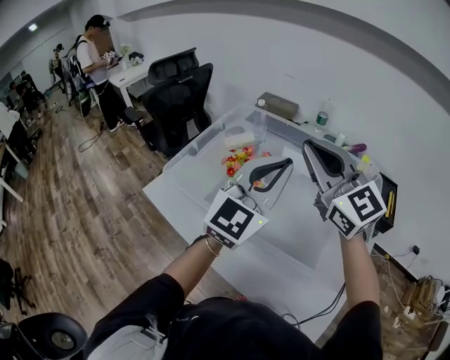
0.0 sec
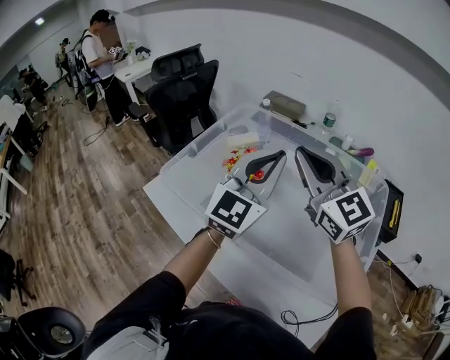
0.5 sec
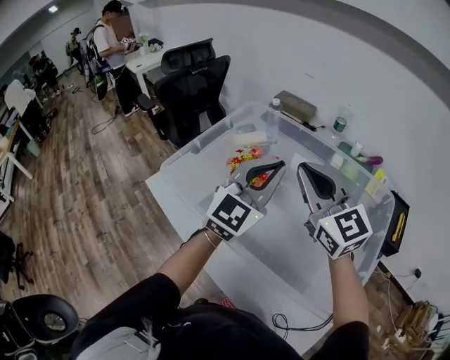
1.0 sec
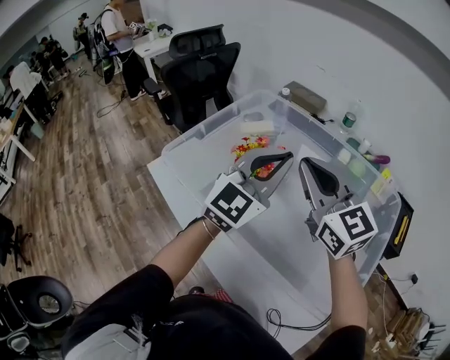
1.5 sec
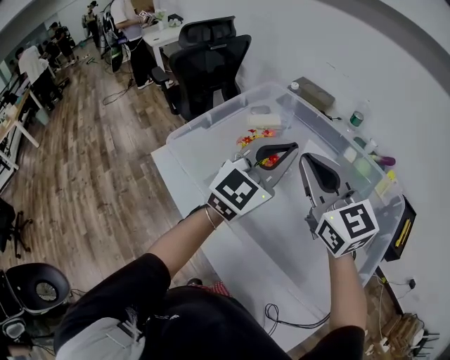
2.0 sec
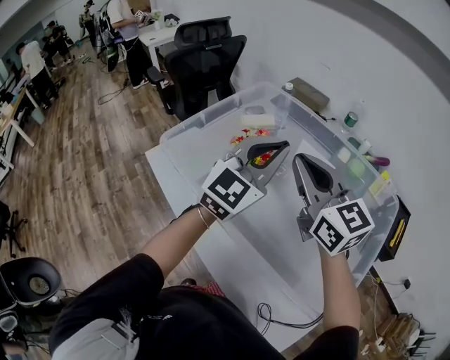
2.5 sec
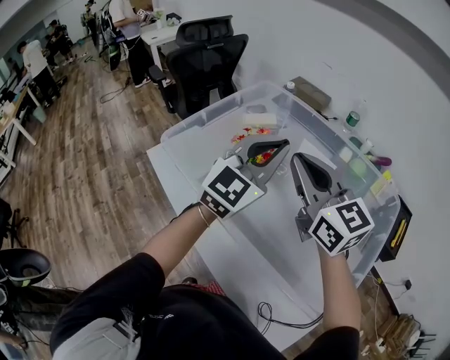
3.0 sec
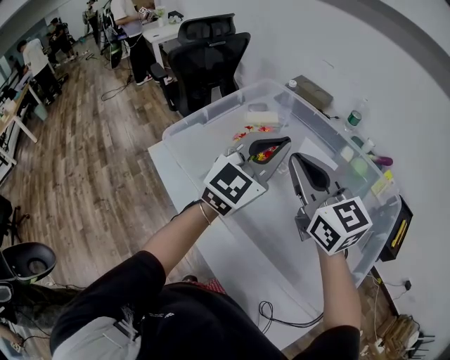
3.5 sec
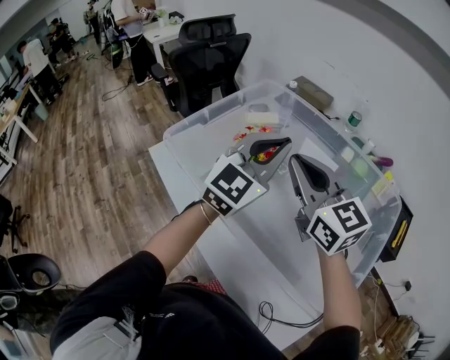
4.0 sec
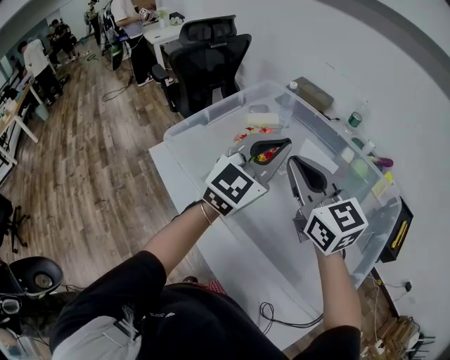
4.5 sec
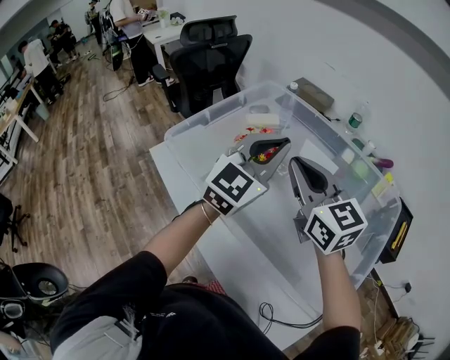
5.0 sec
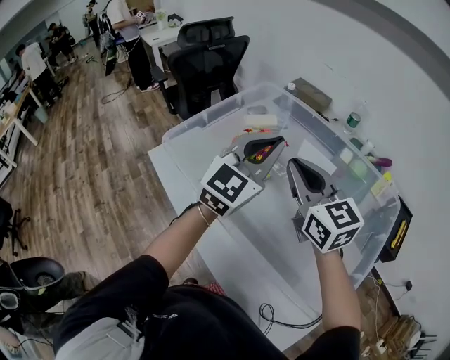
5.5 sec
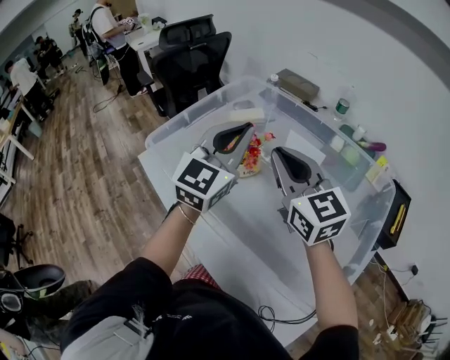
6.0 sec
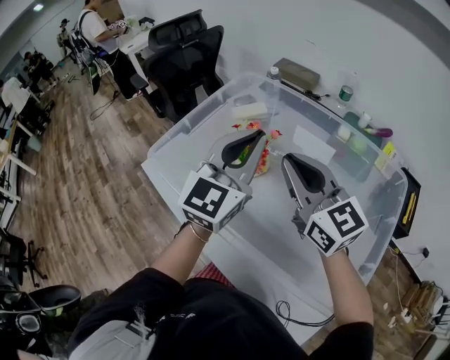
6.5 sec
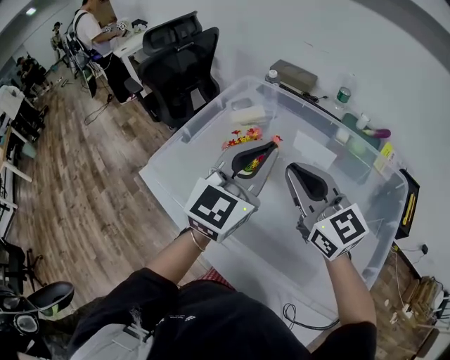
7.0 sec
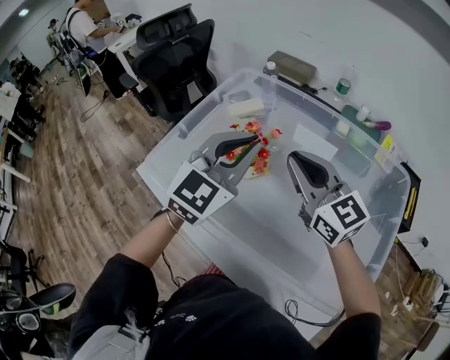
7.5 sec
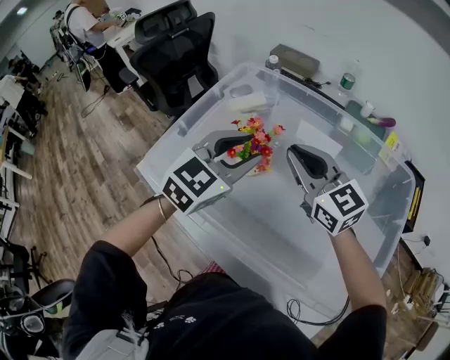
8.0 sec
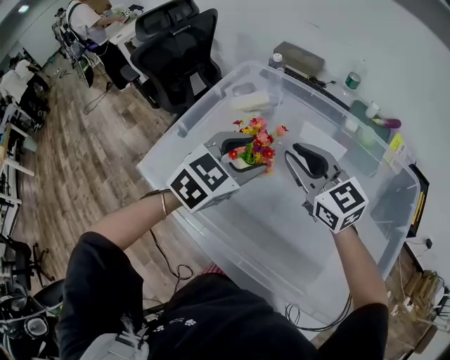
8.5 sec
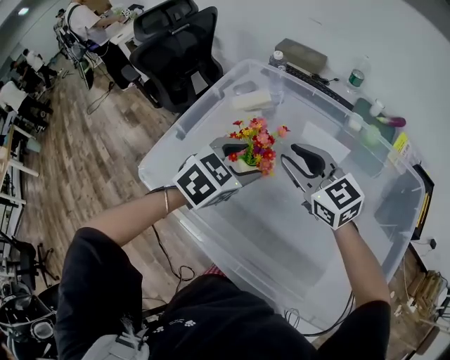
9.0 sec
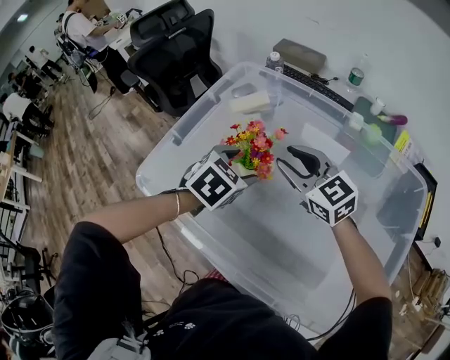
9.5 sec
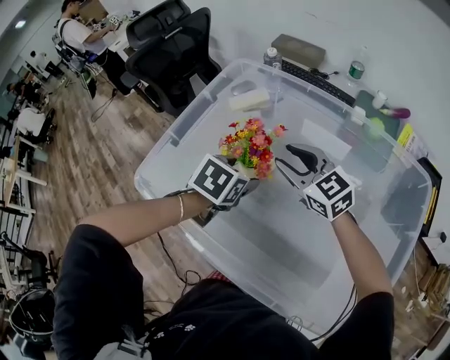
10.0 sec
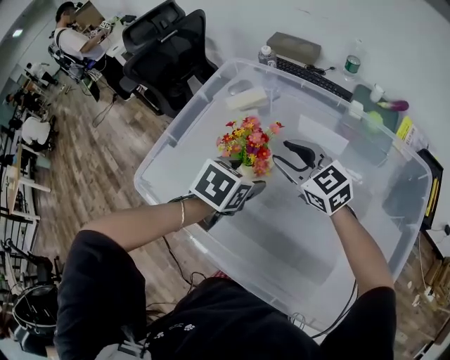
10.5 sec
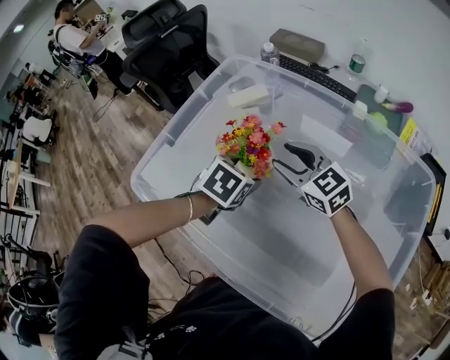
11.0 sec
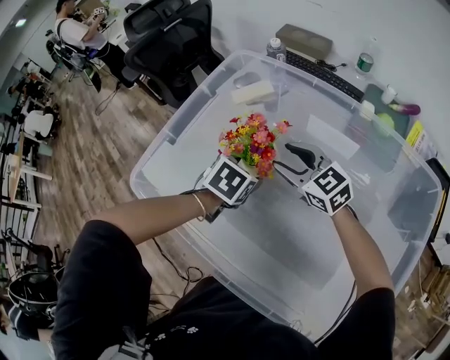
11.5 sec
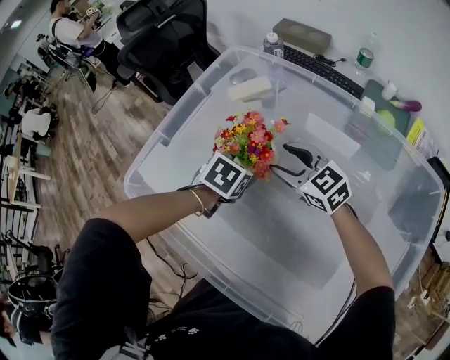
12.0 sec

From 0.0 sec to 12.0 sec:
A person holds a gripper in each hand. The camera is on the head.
From 0.0 sec to 2.0 sec: The right gripper is displaced downward by approximately 10 cm. The left gripper goes some 10 cm forward and downward.
From 2.0 sec to 6.0 sec: The grippers make only small movements.
From 6.0 sec to 8.0 sec: The left gripper heads downward, covering approximately 5 cm, and turns by approximately 30 degrees; the right gripper travels forward and downward by approximately 10 cm.
From 8.0 sec to 10.0 sec: The left gripper heads downward, covering some 15 cm, points its fingers some 40 degrees further downward, and opens up; the right gripper moves downward and forward, approximately 10 cm, and opens its fingers.
From 10.0 sec to 12.0 sec: The grippers both shift downward by approximately 5 cm.

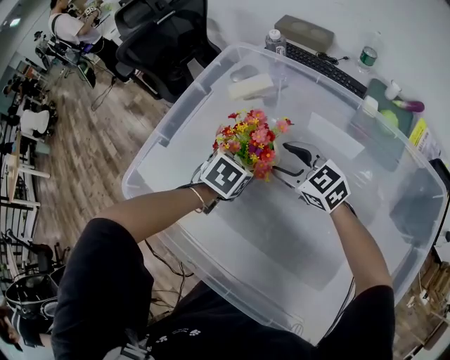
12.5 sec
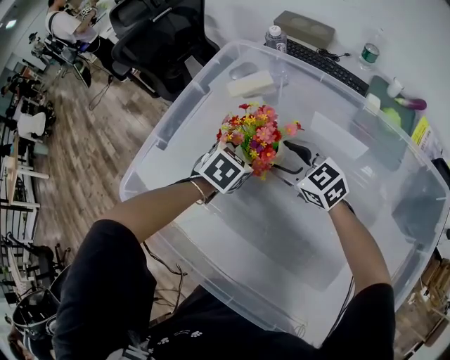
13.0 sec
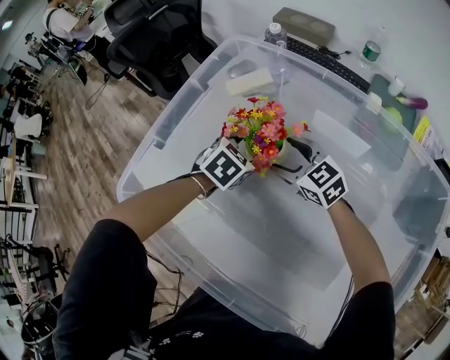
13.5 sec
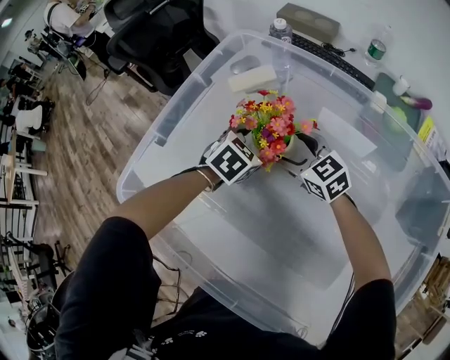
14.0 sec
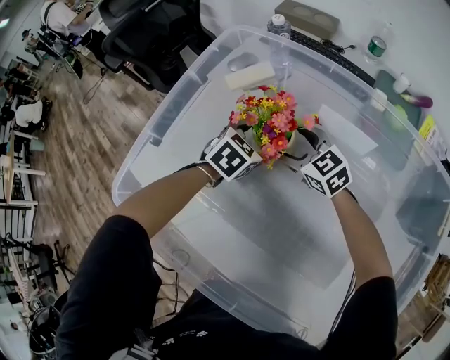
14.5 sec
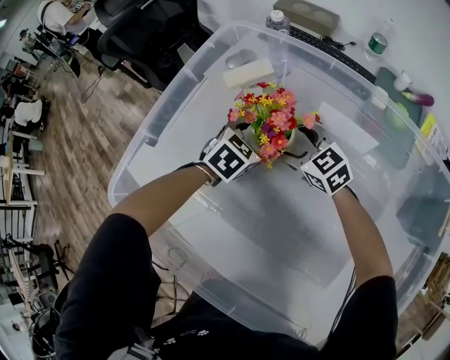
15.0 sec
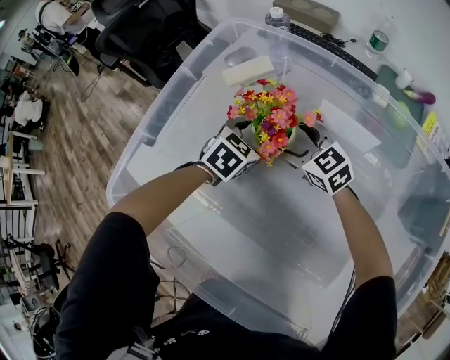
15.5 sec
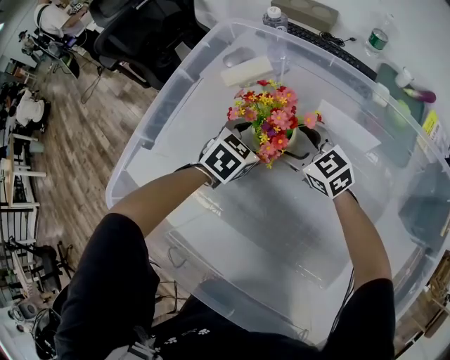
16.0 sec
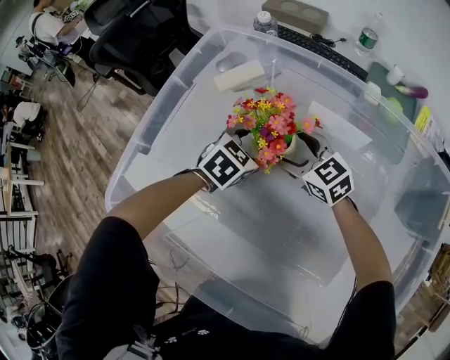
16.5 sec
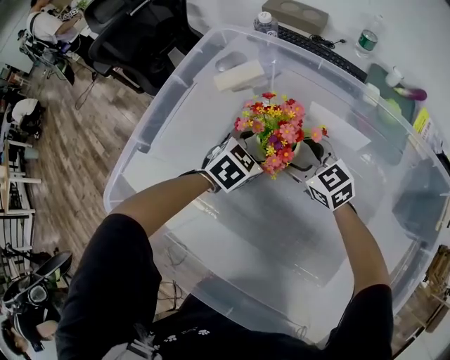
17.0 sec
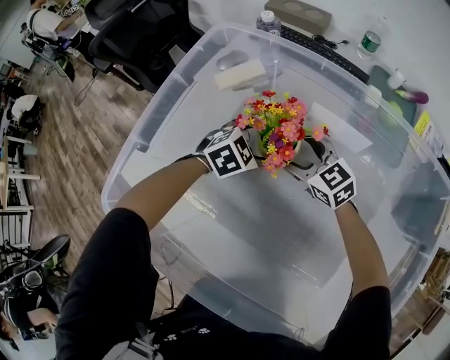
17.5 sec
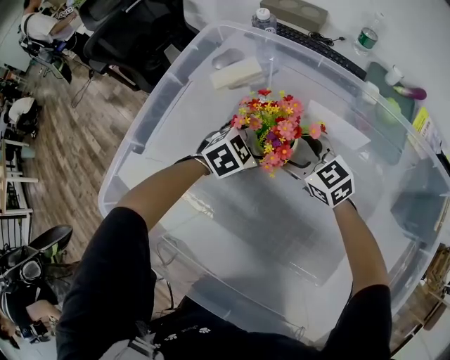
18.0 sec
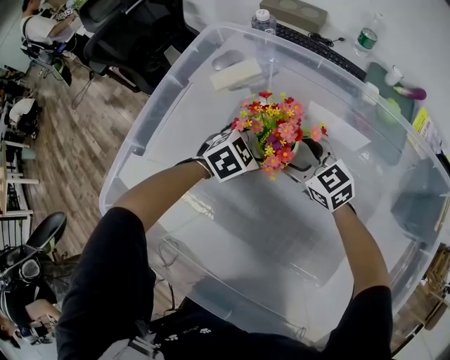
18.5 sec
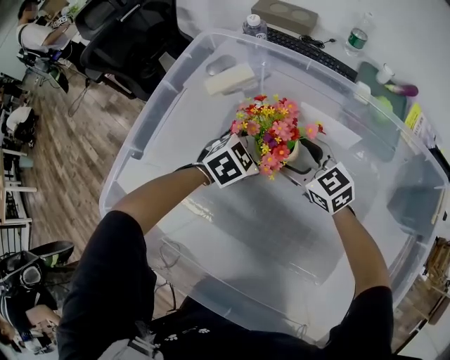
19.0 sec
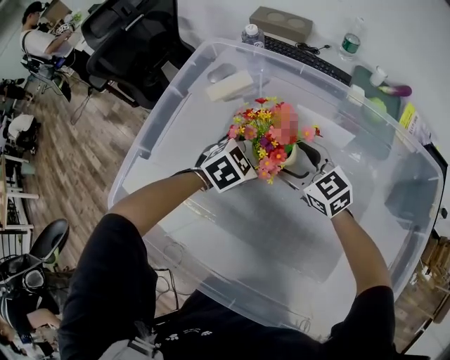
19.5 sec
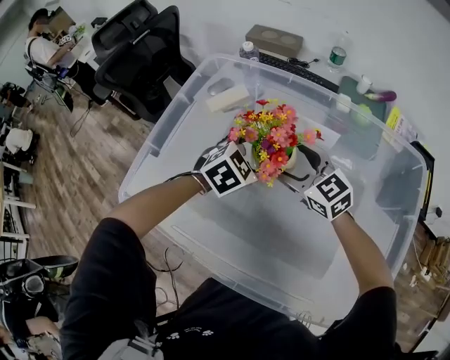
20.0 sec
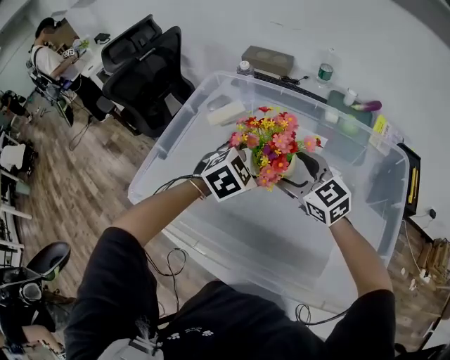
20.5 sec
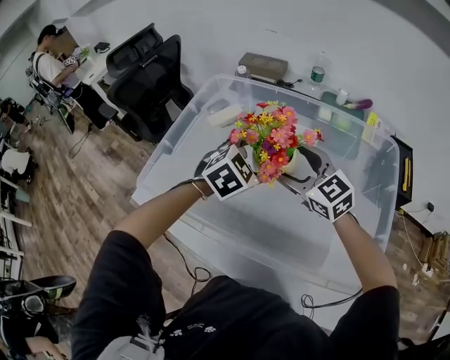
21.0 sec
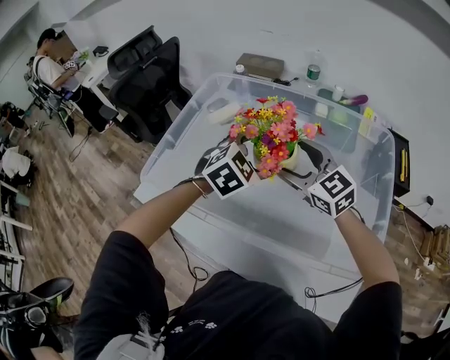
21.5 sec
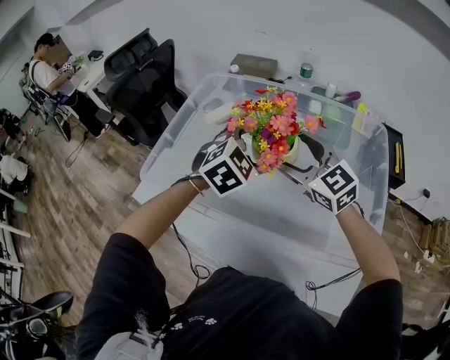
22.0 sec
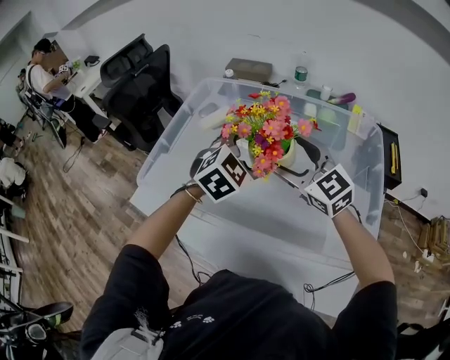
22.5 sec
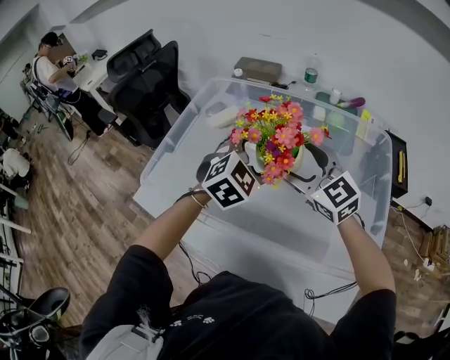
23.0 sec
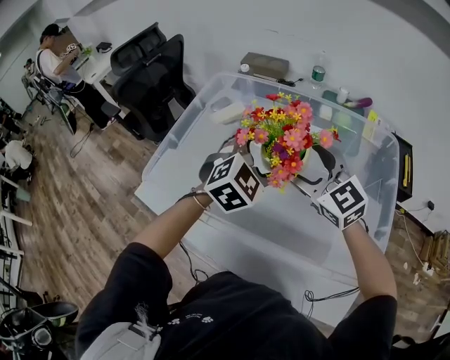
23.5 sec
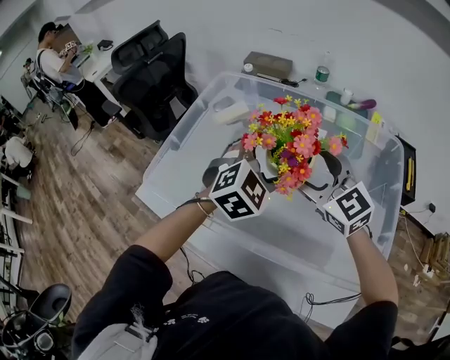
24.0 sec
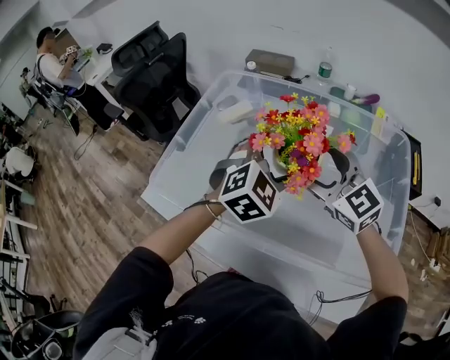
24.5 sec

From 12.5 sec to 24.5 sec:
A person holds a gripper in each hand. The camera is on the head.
From 12.5 sec to 14.5 sec: The grippers both shift forward by some 5 cm.
From 14.5 sec to 16.5 sec: The grippers stay close to where they were, moving slightly.
From 16.5 sec to 18.5 sec: The grippers make only small movements.
From 18.5 sec to 20.5 sec: Both grippers travel together upward and backward, some 15 cm.
From 20.5 sec to 22.5 sec: Both grippers travel together upward and backward, approximately 10 cm.
From 22.5 sec to 24.5 sec: There are only small adjustments of the grippers.

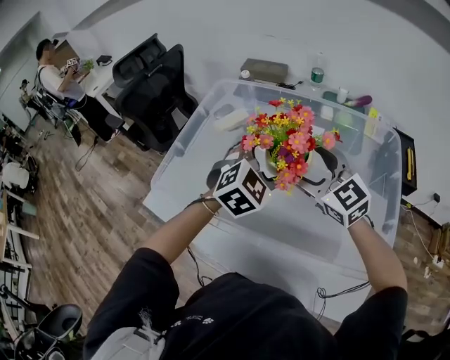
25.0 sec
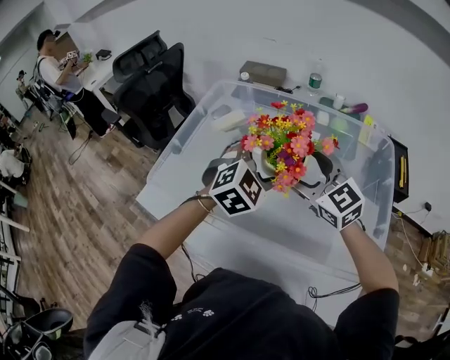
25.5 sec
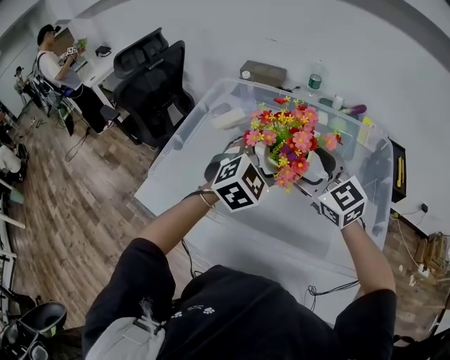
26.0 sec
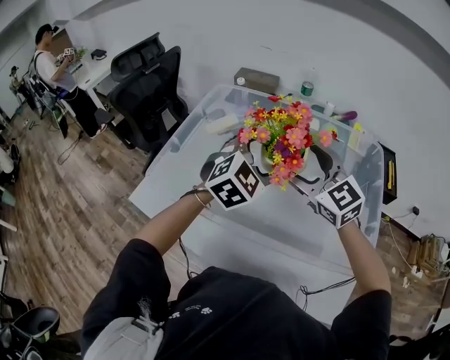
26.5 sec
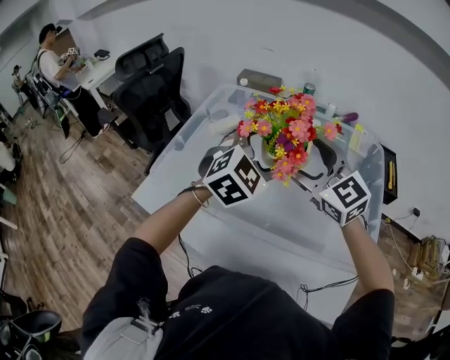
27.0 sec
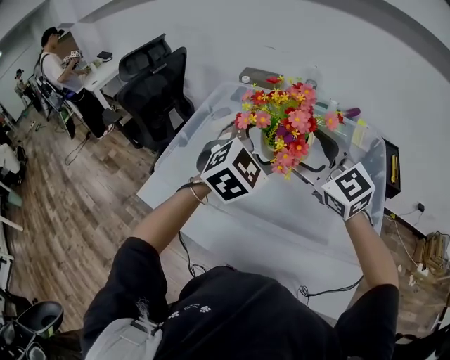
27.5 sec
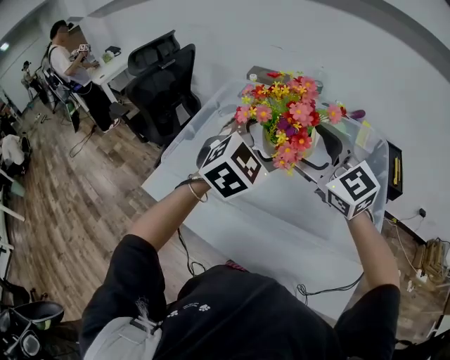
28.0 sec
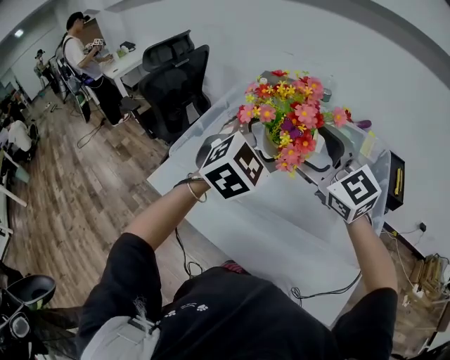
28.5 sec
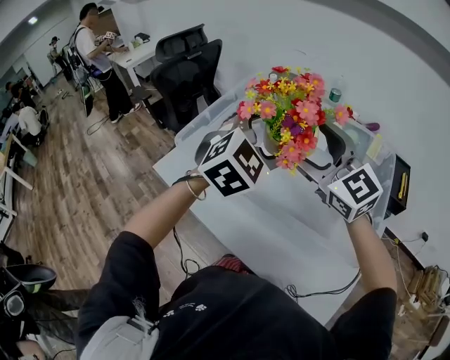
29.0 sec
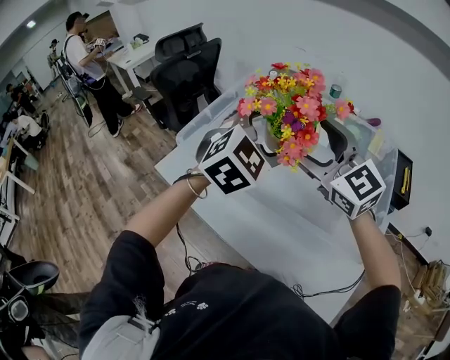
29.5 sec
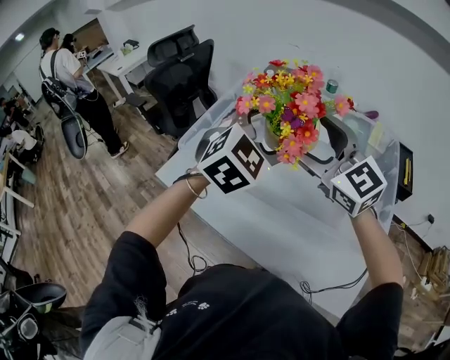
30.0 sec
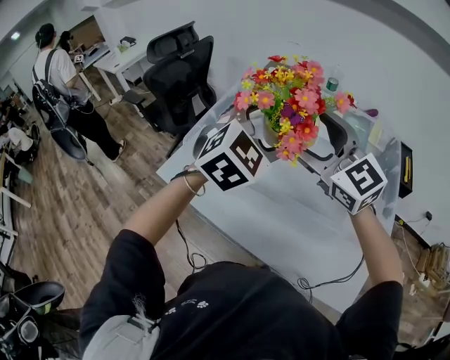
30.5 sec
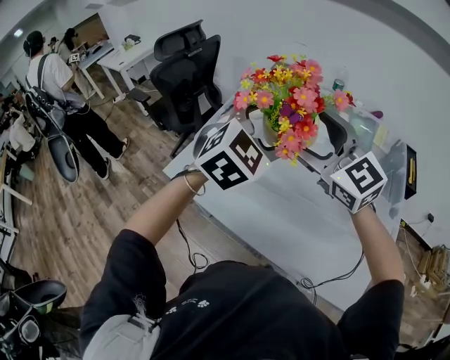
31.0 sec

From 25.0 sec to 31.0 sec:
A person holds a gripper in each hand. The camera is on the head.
From 25.0 sec to 27.0 sec: The two grippers go some 5 cm upward.
From 27.0 sec to 29.0 sec: The two grippers go approximately 10 cm backward and upward.
From 29.0 sec to 31.0 sec: Both grippers move to the left, some 5 cm.
